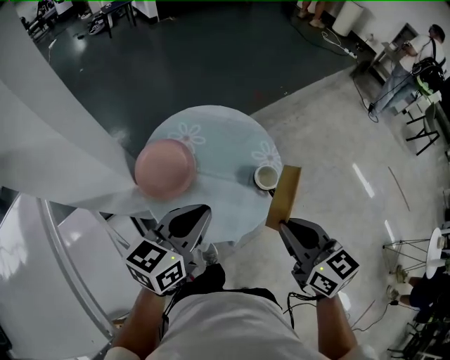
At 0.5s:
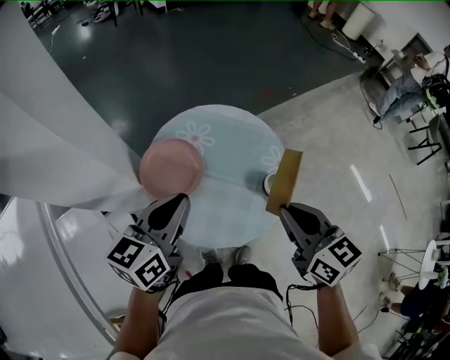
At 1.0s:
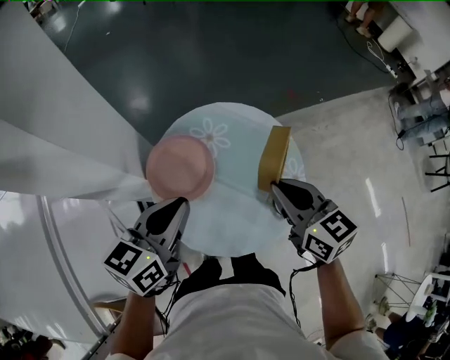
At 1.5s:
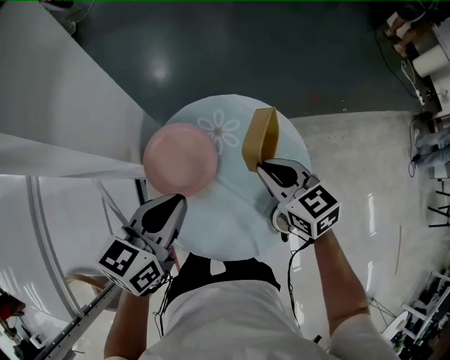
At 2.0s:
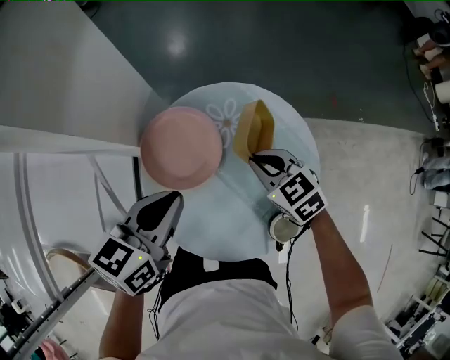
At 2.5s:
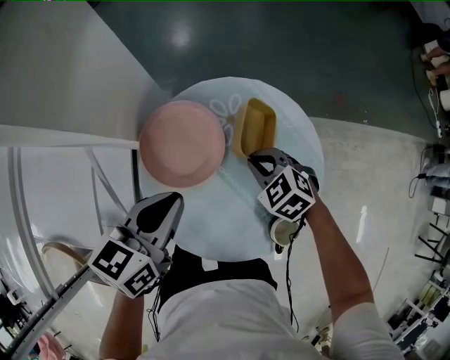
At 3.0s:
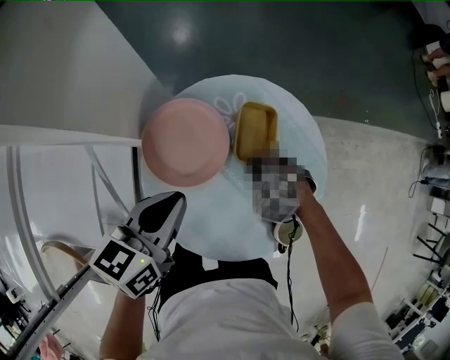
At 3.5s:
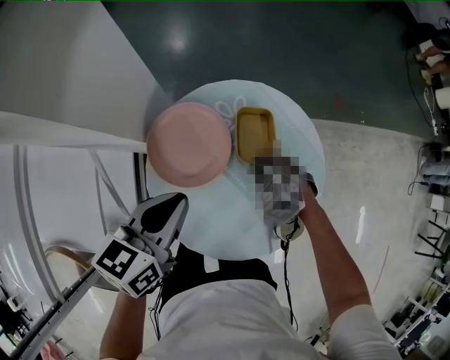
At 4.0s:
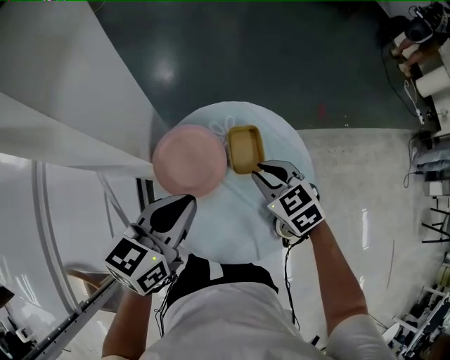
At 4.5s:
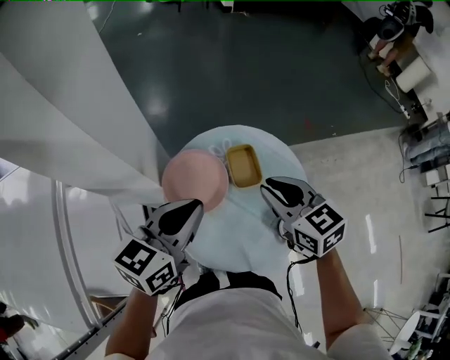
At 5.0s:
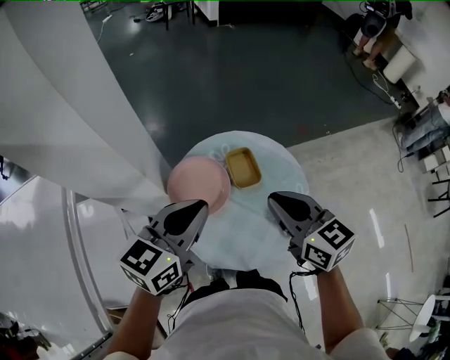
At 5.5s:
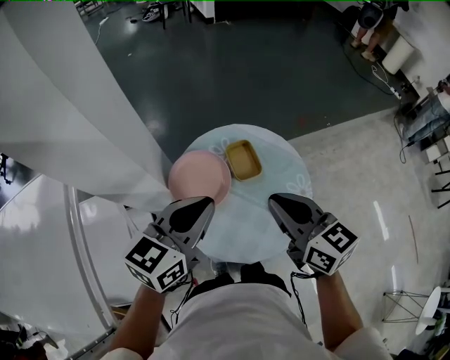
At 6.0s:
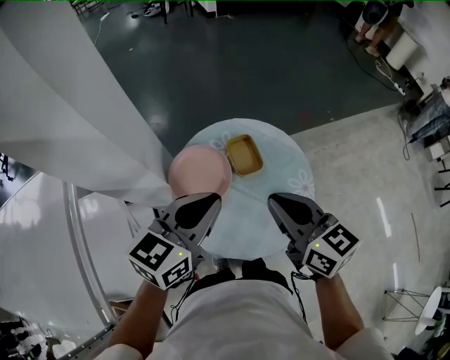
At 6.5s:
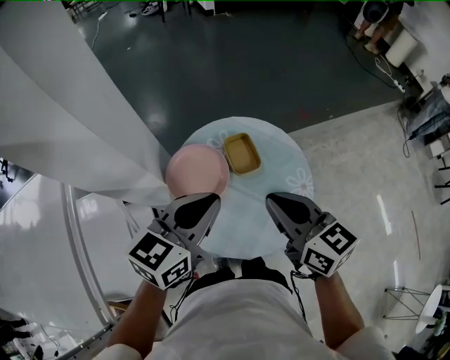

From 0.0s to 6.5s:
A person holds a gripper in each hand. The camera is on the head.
From 0.0s to 2.0s: The right gripper changes place by roughly 40 cm, and swivels about 60 degrees; the left gripper changes place by some 20 cm, and turns by approximately 40 degrees.
From 2.0s to 4.5s: The right gripper shifts about 20 cm upward, and turns by approximately 30 degrees. Meanwhile the left gripper heads upward, covering approximately 10 cm.
From 4.5s to 6.5s: The right gripper is displaced backward by approximately 10 cm, and turns by roughly 20 degrees, while the left gripper moves roughly 5 cm.

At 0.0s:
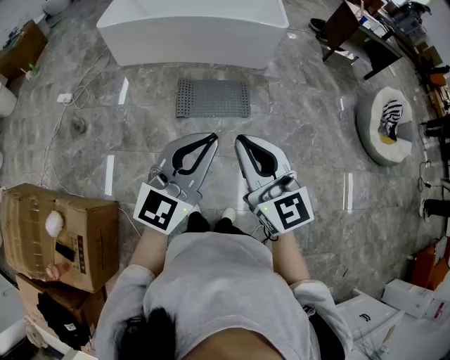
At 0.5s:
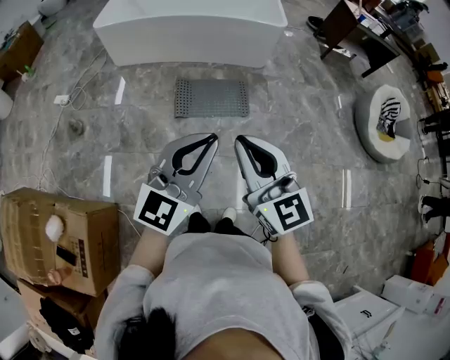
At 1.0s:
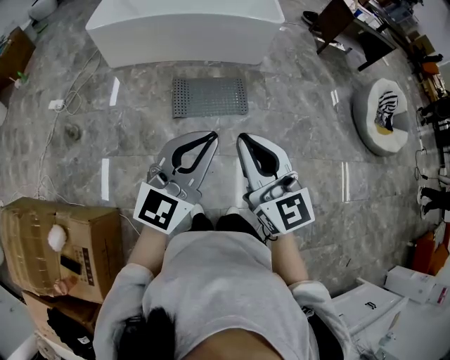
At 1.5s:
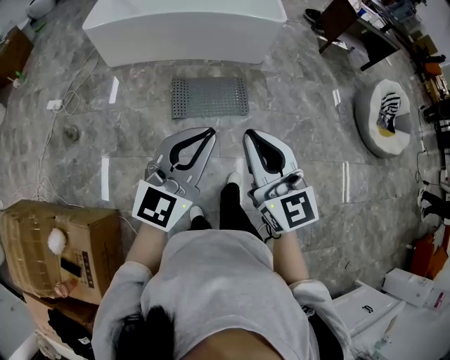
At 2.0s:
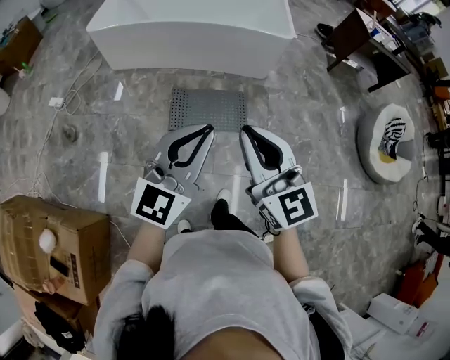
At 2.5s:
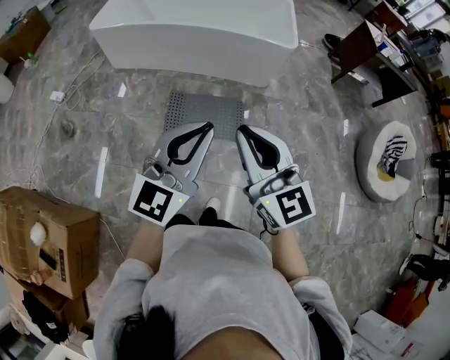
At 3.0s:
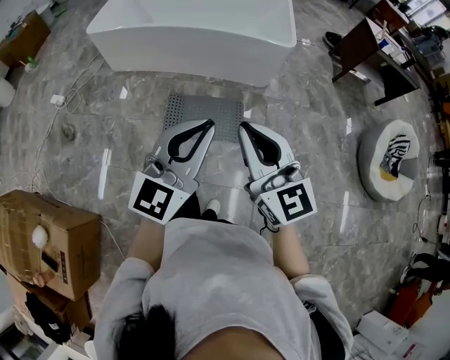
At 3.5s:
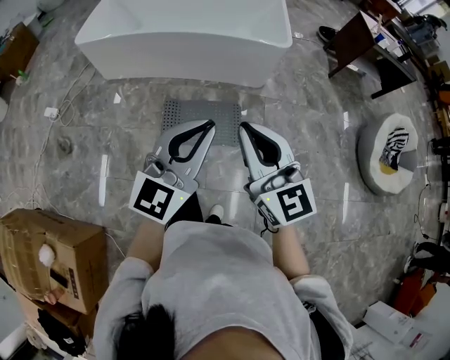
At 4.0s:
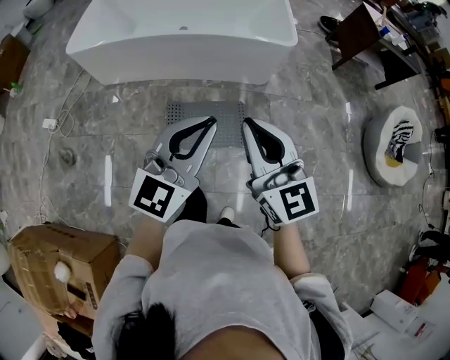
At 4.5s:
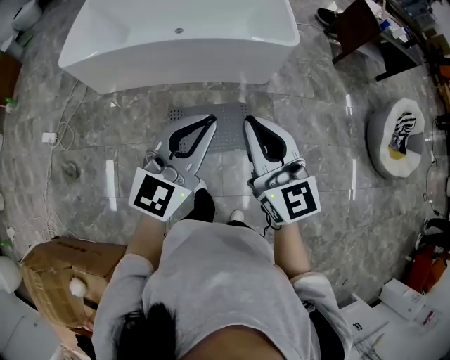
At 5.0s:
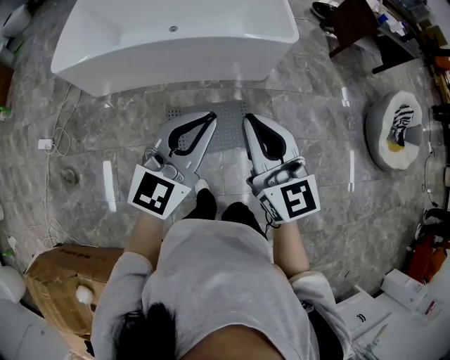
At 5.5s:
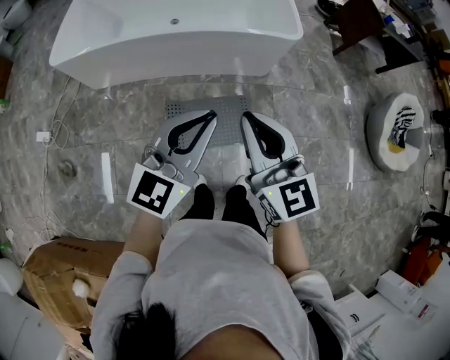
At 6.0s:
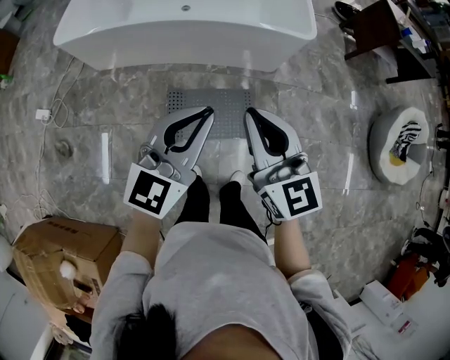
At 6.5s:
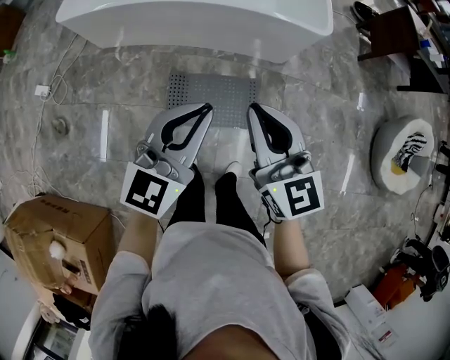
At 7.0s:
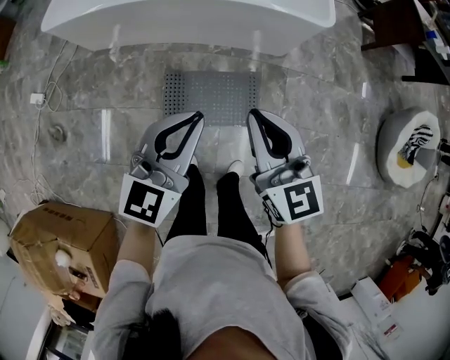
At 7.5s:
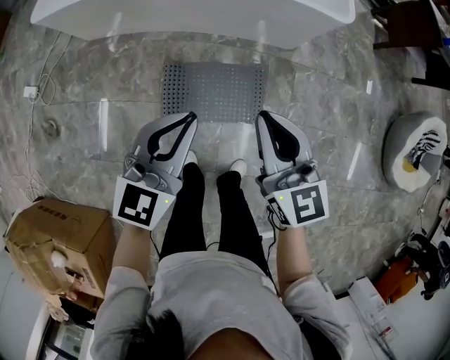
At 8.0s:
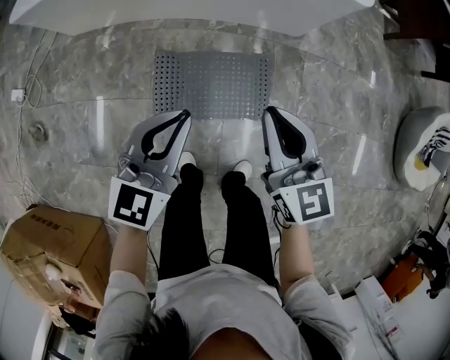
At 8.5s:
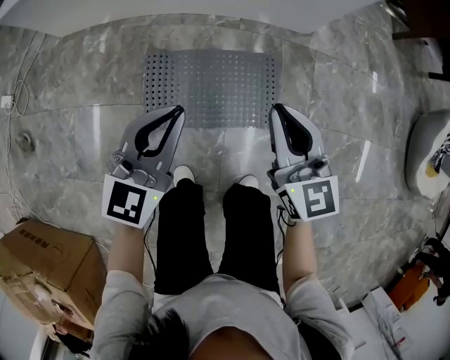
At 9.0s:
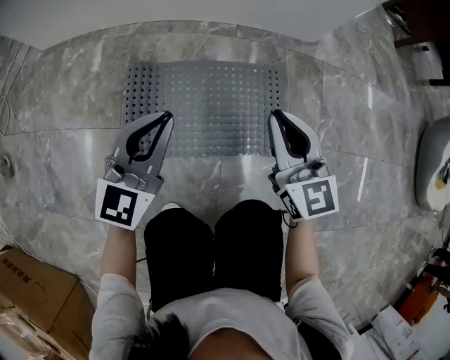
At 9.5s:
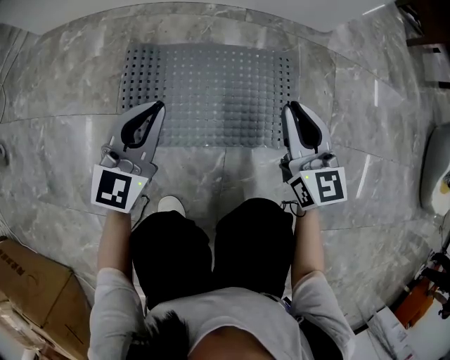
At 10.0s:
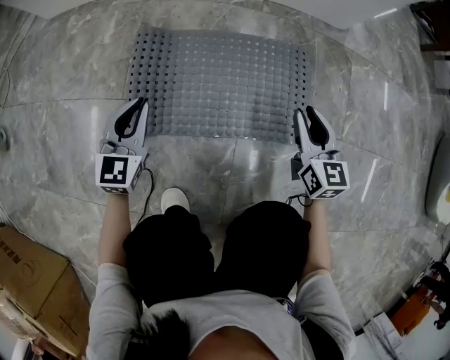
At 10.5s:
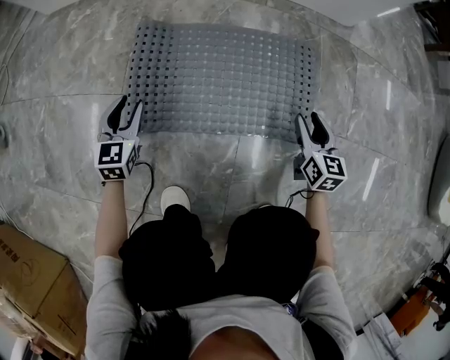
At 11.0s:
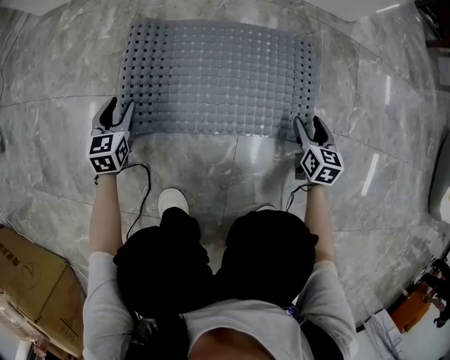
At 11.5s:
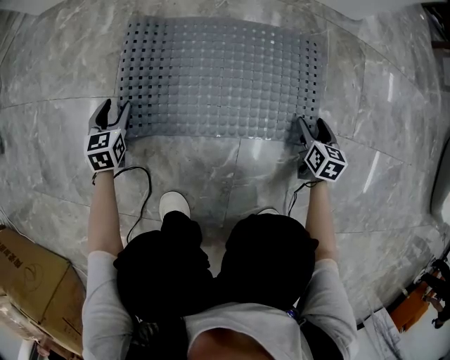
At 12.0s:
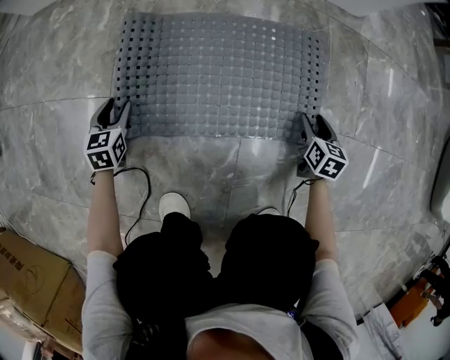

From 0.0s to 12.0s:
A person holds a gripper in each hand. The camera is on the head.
From 0.0s to 2.0s: Both grippers move forward, some 20 cm.
From 2.0s to 4.0s: Both grippers travel together forward, about 25 cm.
From 4.0s to 6.0s: The left gripper heads forward and to the left, covering approximately 15 cm. Meanwhile the right gripper travels forward by approximately 15 cm.
From 6.0s to 8.0s: The two grippers go some 35 cm downward.
From 8.0s to 10.0s: Both grippers travel together downward, some 50 cm. The left gripper turns by approximately 20 degrees, while the right gripper opens up.
From 10.0s to 12.0s: The right gripper goes some 20 cm downward and to the right, changes its angle by approximately 30 degrees, and opens its fingers; the left gripper shifts approximately 20 cm downward and to the left, swivels about 30 degrees, and opens.

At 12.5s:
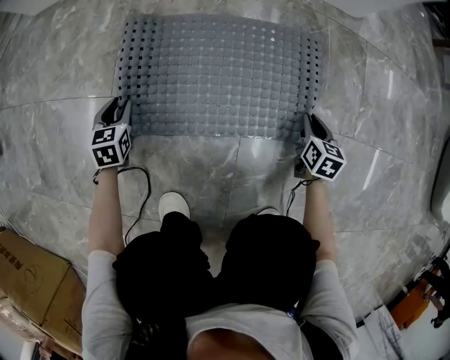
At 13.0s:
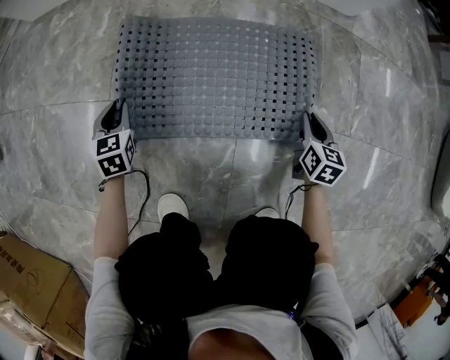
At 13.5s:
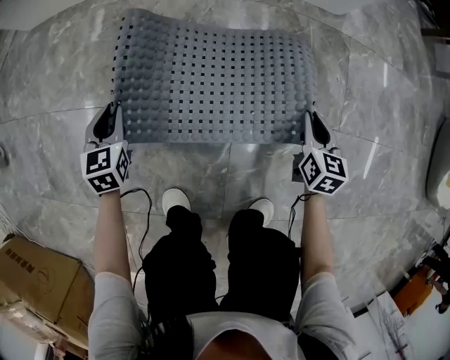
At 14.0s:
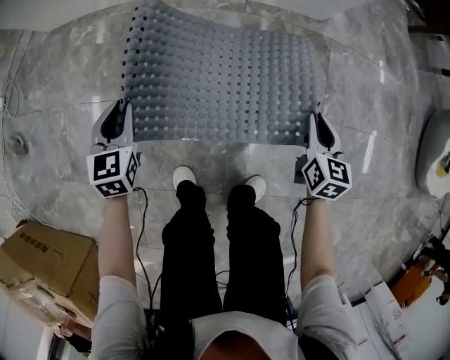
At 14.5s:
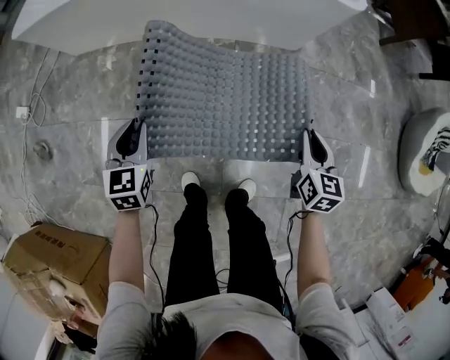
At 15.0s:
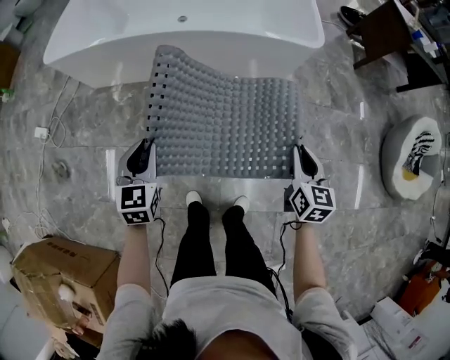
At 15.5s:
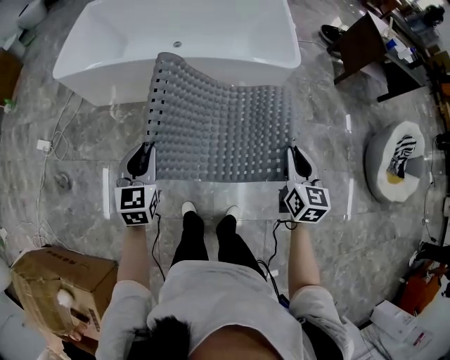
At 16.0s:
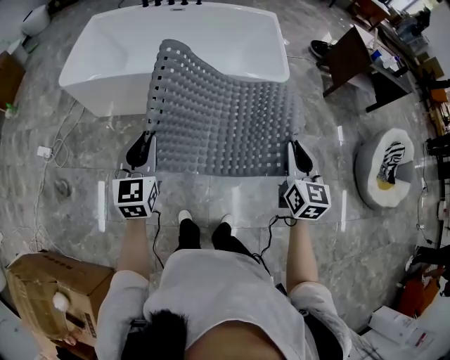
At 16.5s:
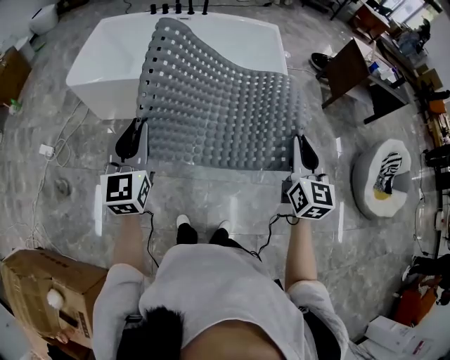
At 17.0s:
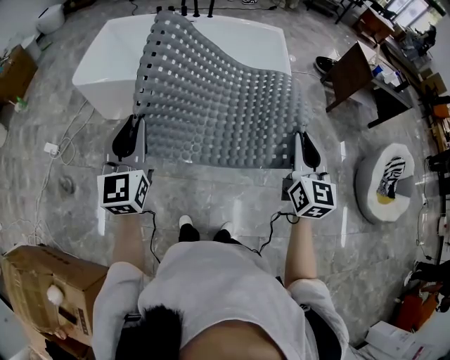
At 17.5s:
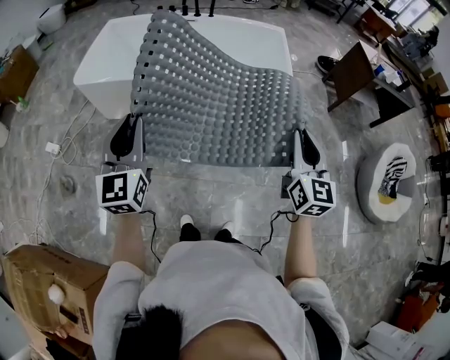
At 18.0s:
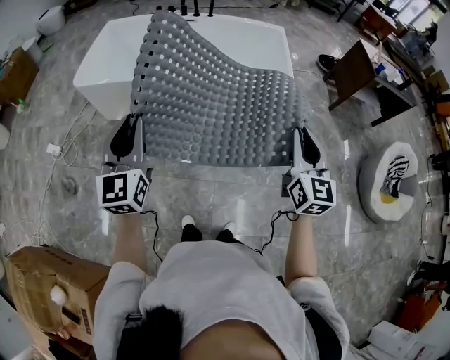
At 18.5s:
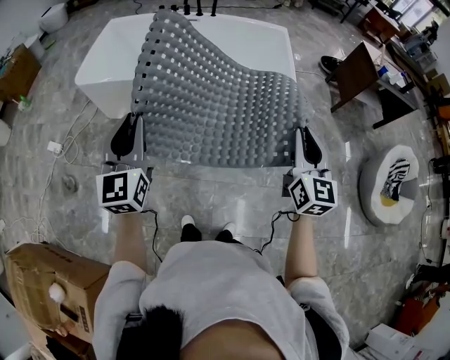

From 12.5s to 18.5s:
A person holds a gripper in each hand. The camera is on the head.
From 12.5s to 14.5s: The grippers both shift upward by some 60 cm.
From 14.5s to 16.5s: Both grippers travel together upward, some 50 cm. The left gripper points its fingers some 30 degrees further upward. Meanwhile the right gripper changes its angle by approximately 30 degrees.
From 16.5s to 18.5s: There are only small adjustments of the grippers.

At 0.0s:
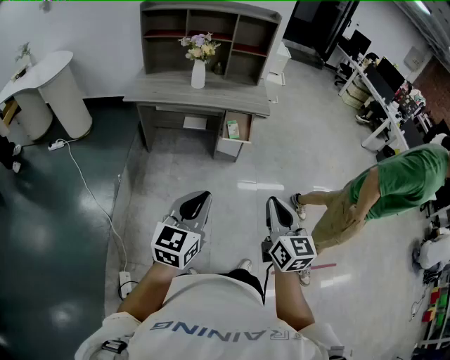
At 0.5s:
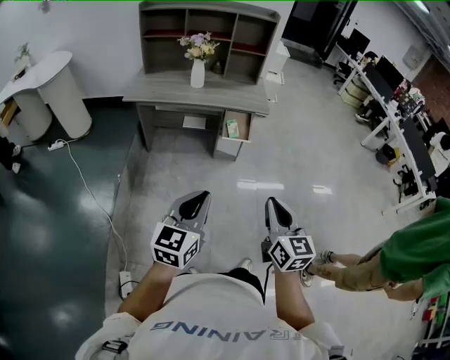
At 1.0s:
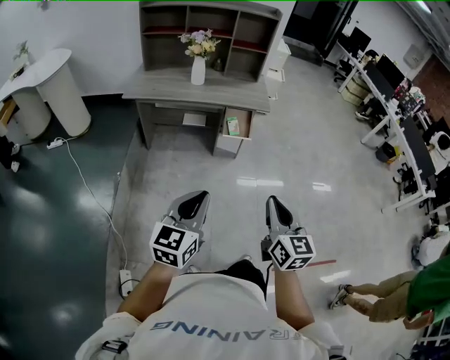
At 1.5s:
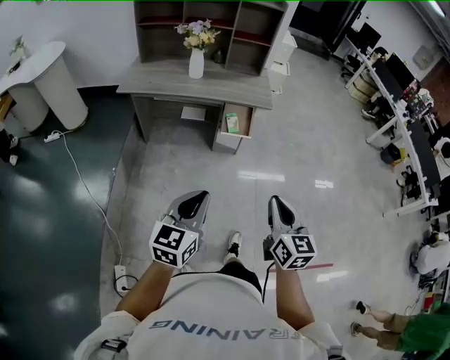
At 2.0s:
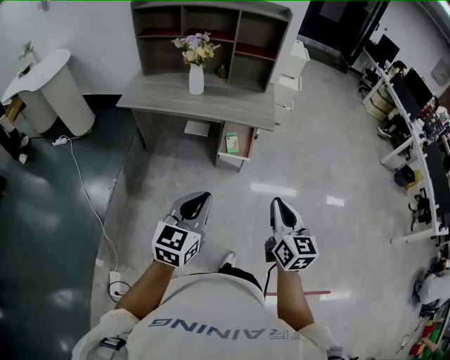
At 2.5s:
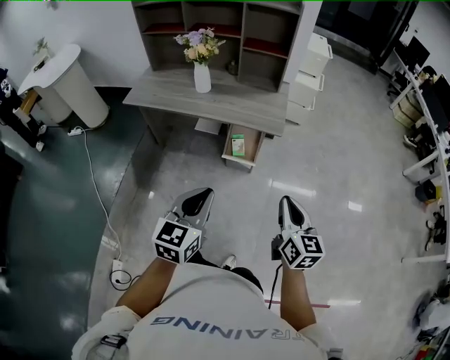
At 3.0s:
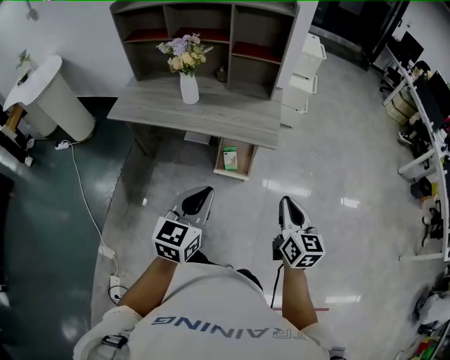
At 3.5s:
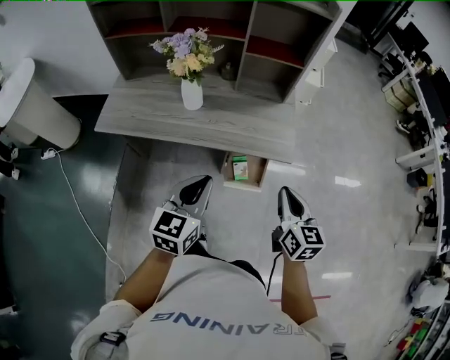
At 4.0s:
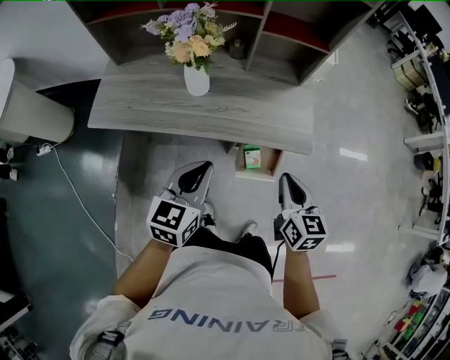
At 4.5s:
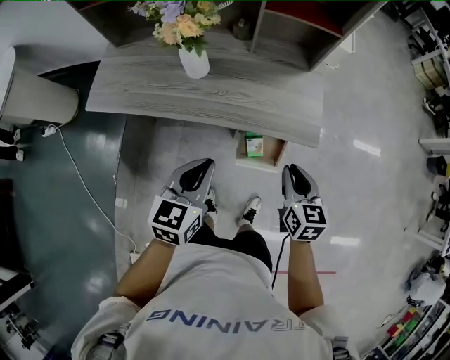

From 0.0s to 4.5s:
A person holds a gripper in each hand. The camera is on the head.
From 0.0s to 2.0s: Both grippers travel together forward and to the right, roughly 20 cm.
From 2.0s to 4.5s: The two grippers travel together, forward, approximately 40 cm. The right gripper turns by about 20 degrees.
